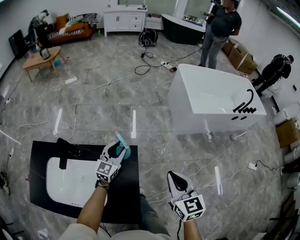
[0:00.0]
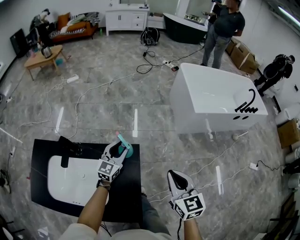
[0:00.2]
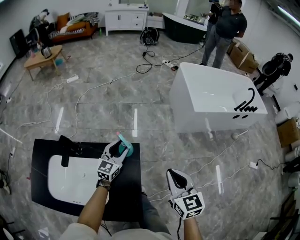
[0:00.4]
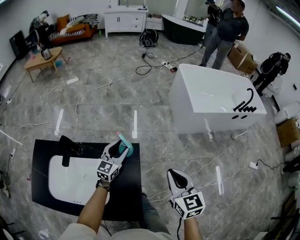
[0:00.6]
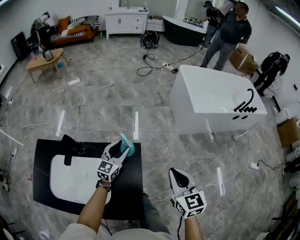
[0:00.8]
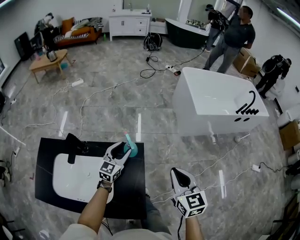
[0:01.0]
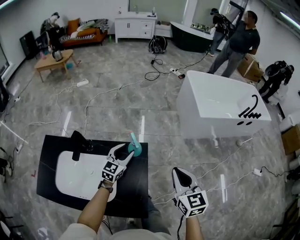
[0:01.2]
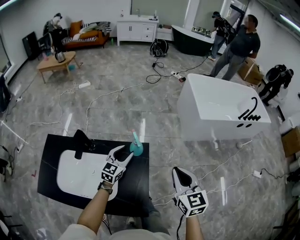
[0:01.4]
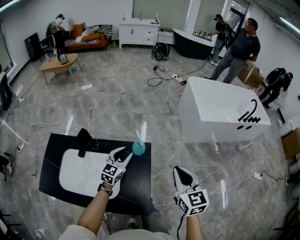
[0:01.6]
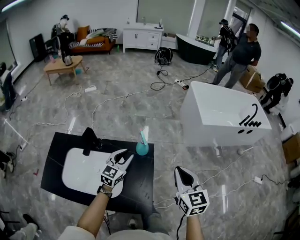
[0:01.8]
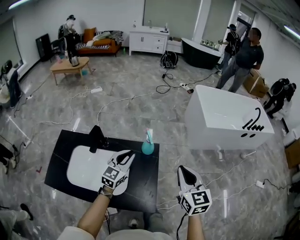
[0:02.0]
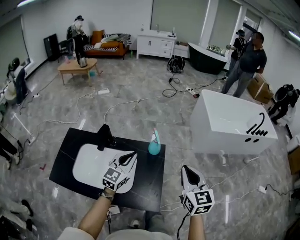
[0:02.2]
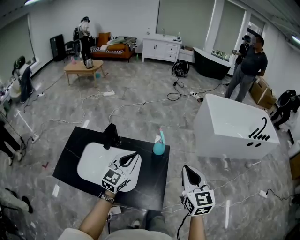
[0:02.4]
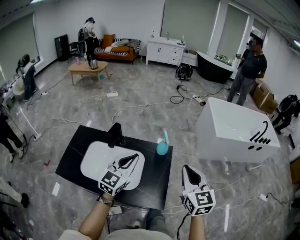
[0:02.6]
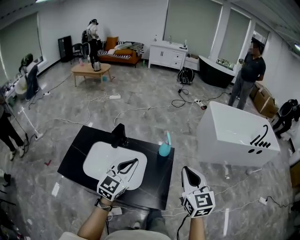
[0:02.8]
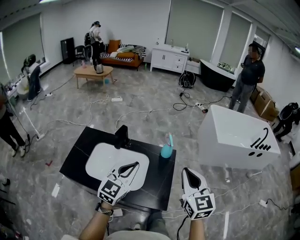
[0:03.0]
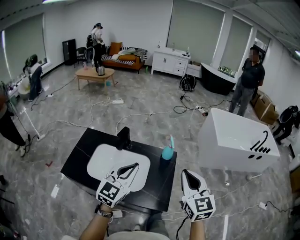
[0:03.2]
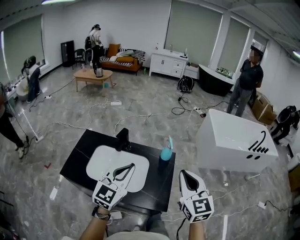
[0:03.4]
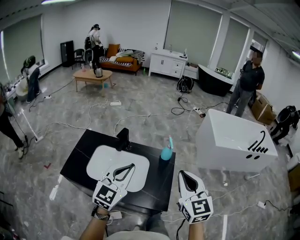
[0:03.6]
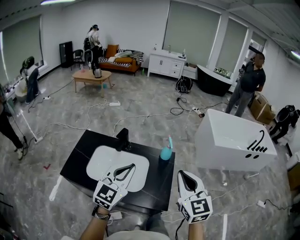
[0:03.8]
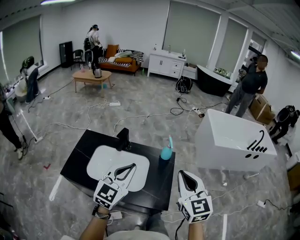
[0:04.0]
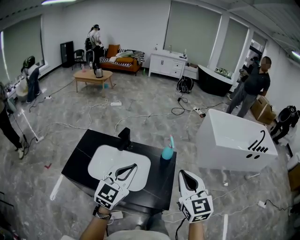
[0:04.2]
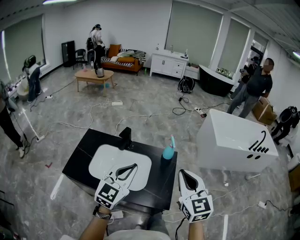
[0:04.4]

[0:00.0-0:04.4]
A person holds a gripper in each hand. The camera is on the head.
0.0 to 1.4 s: The right gripper heads backward, covering some 5 cm. Meanwhile the left gripper goes roughly 10 cm backward.
1.4 to 3.0 s: The right gripper heads backward, to the left and upward, covering about 20 cm. The left gripper heads backward and upward, covering roughly 35 cm, and closes up.
3.0 to 4.4 s: The right gripper moves approximately 5 cm. The left gripper changes place by roughly 5 cm.

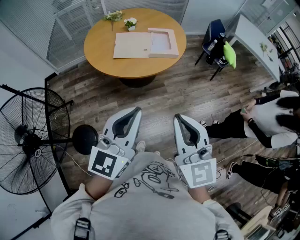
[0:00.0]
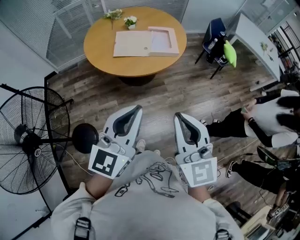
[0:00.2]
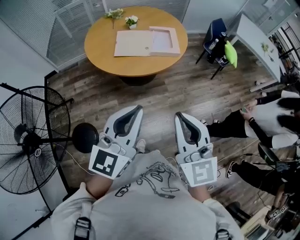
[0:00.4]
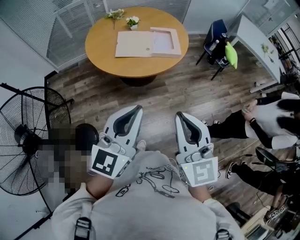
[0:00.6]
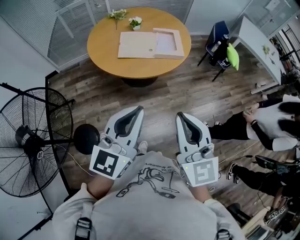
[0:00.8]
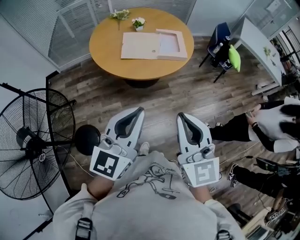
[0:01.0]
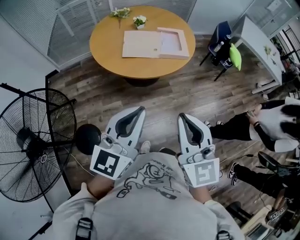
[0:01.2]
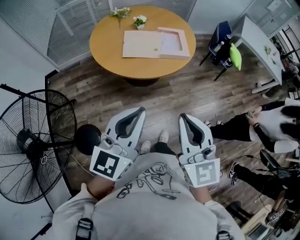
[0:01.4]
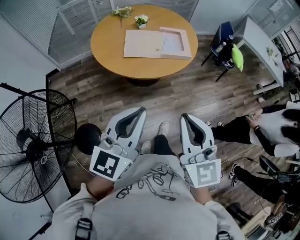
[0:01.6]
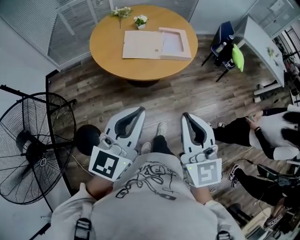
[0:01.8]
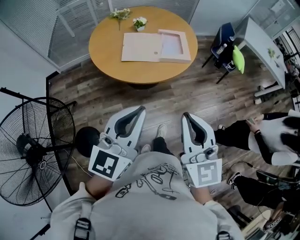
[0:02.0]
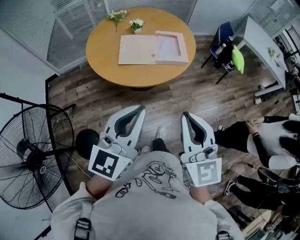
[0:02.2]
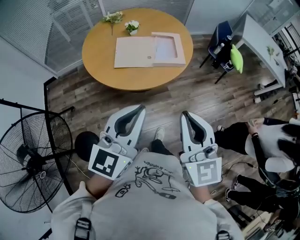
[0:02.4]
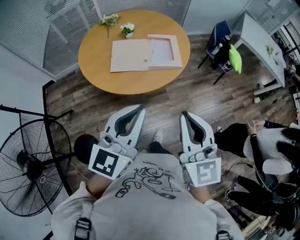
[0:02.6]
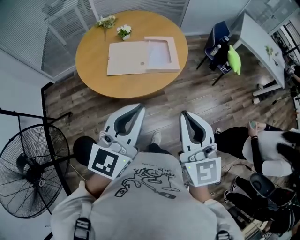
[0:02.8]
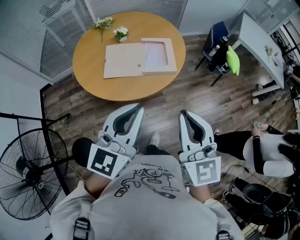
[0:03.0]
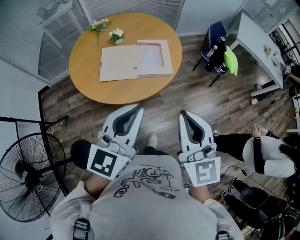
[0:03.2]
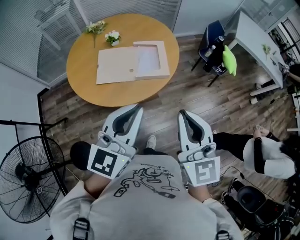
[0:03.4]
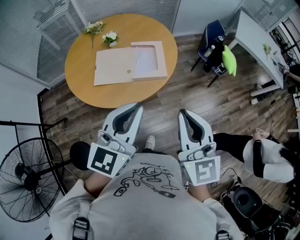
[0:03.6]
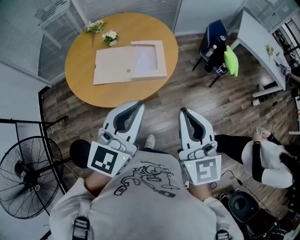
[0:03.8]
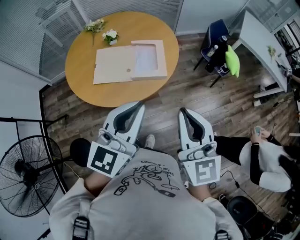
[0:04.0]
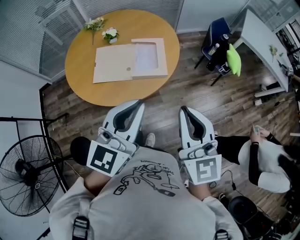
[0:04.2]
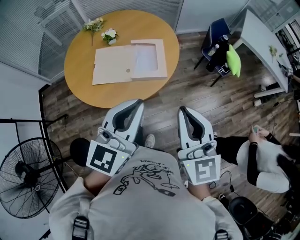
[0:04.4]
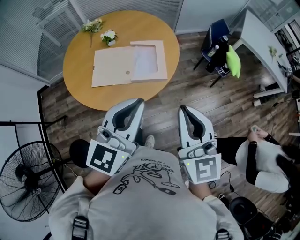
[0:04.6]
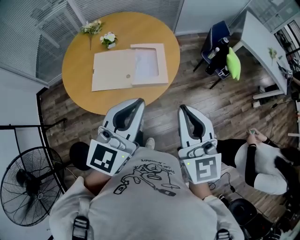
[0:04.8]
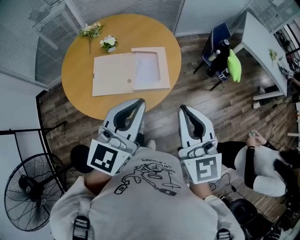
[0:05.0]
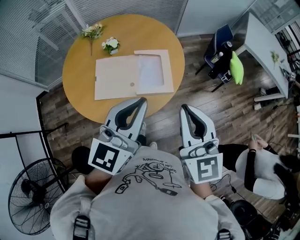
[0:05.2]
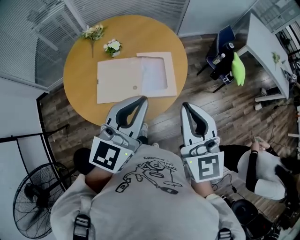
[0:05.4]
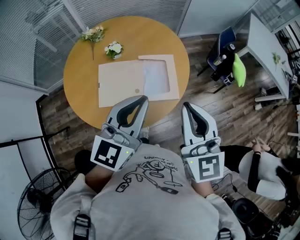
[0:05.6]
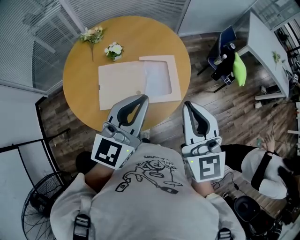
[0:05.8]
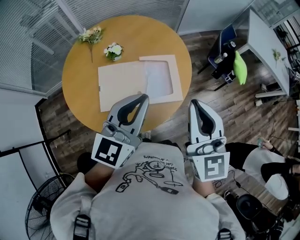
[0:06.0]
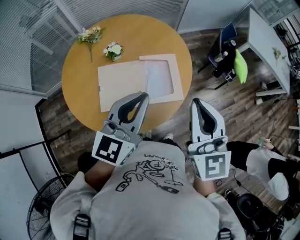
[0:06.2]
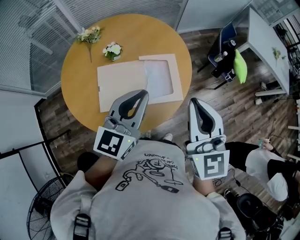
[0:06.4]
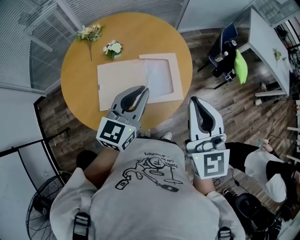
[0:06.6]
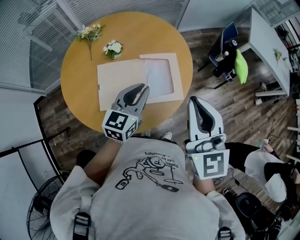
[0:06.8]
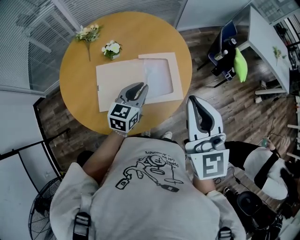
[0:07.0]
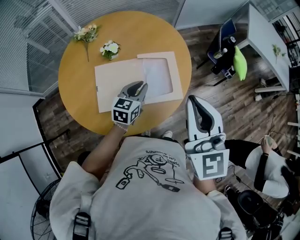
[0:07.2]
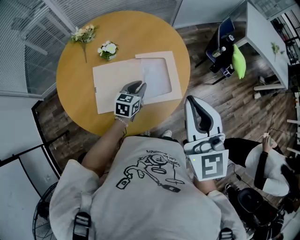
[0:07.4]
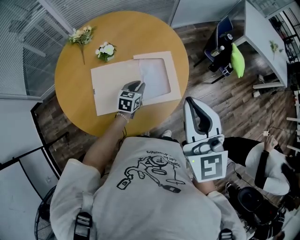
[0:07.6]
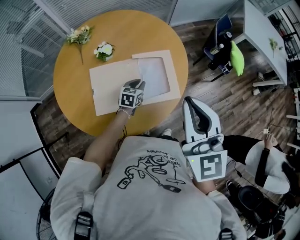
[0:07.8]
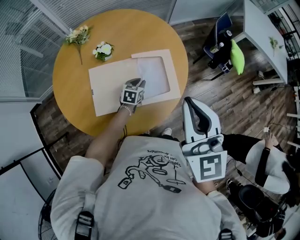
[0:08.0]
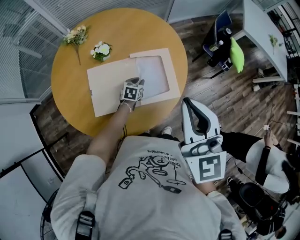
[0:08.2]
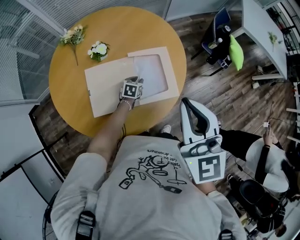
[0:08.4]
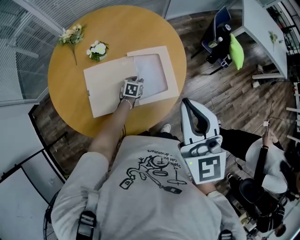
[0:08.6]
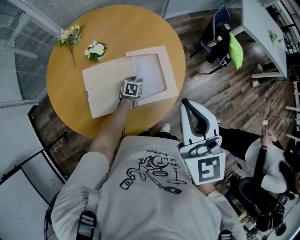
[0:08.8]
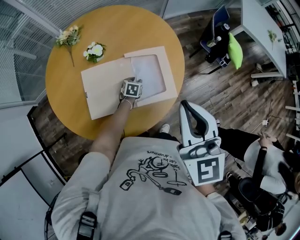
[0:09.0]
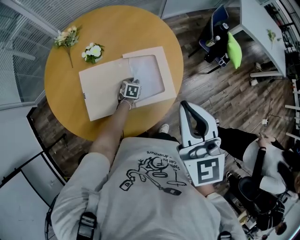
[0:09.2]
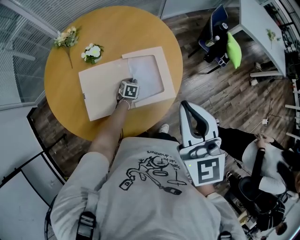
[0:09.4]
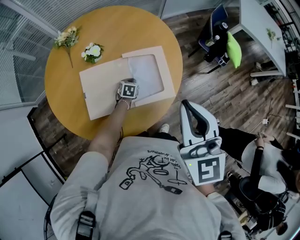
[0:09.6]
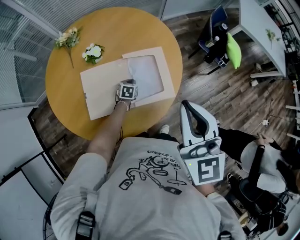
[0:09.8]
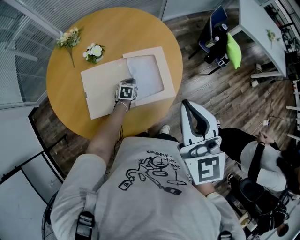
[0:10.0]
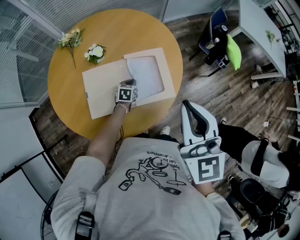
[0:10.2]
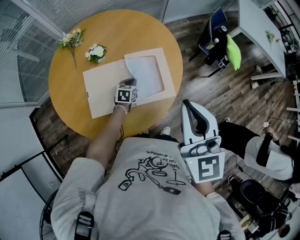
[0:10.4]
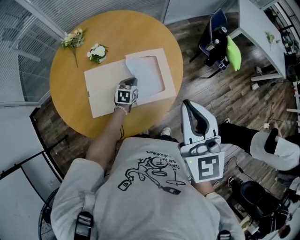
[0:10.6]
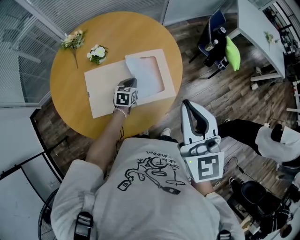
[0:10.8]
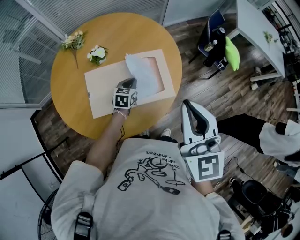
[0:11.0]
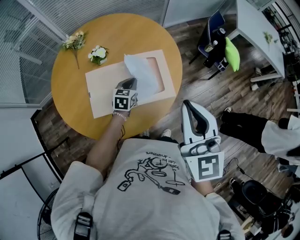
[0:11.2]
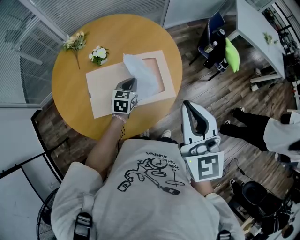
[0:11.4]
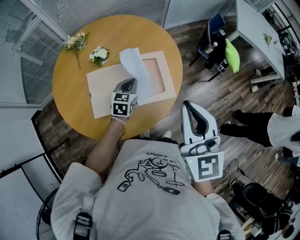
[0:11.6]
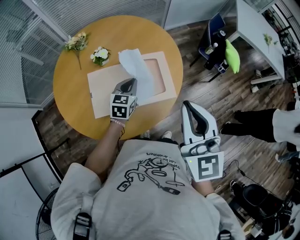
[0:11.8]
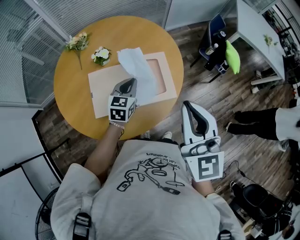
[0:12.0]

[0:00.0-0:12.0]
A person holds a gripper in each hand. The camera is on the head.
0.0 to 1.6 s: Both grippers travel together to the left, some 10 cm.
1.6 to 3.0 s: The two grippers go approximately 25 cm forward and to the right.
3.0 to 4.4 s: The two grippers go about 15 cm forward and to the right.
4.4 to 6.0 s: The grippers both shift forward and to the left by roughly 25 cm.
6.0 to 7.6 s: The left gripper moves downward, about 35 cm, and angles its fingers downward, by about 30 degrees.
7.6 to 9.0 s: The left gripper travels downward by roughly 15 cm, and rotates some 20 degrees, while the right gripper changes place by approximately 5 cm.
9.0 to 10.4 s: The left gripper goes approximately 10 cm upward, and closes its fingers.
10.4 to 12.0 s: The left gripper travels upward by about 20 cm, and turns by some 20 degrees.

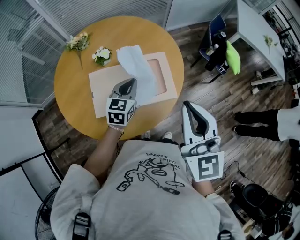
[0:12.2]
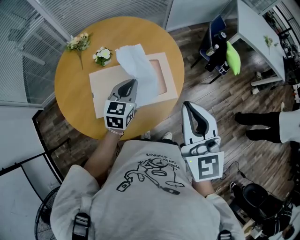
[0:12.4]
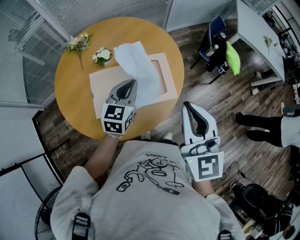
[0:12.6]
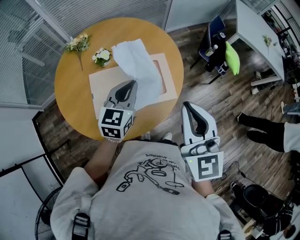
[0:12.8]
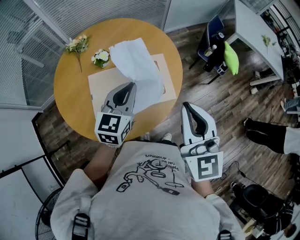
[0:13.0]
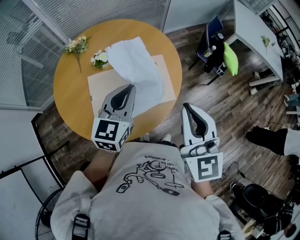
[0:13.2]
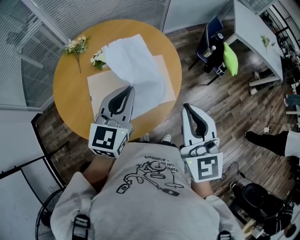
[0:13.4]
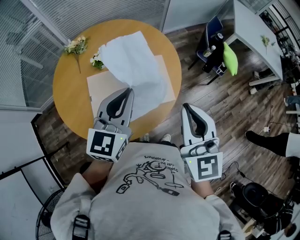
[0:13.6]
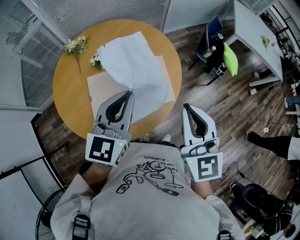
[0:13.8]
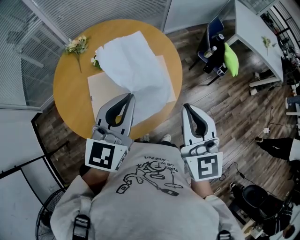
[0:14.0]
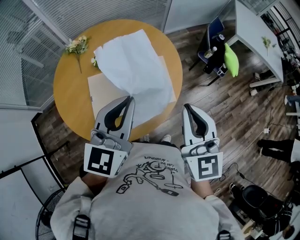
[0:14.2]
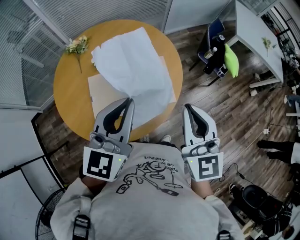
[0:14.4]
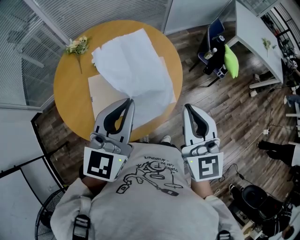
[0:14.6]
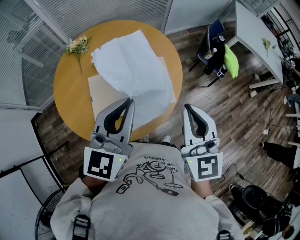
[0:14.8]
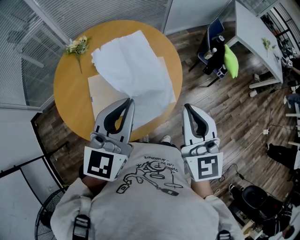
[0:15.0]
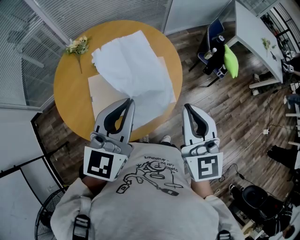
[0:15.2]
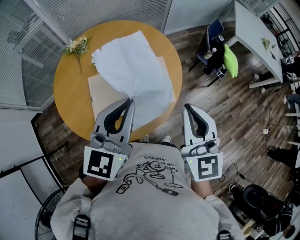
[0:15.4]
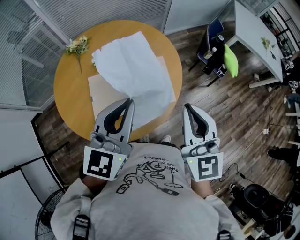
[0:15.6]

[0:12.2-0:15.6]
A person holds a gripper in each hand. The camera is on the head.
12.2 to 13.8 s: The left gripper heads upward and backward, covering roughly 20 cm.
13.8 to 15.6 s: There are only small adjustments of the grippers.

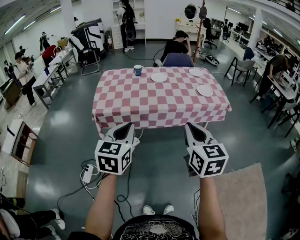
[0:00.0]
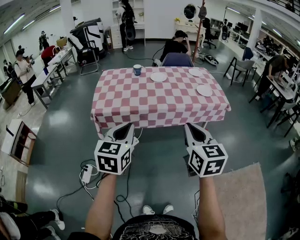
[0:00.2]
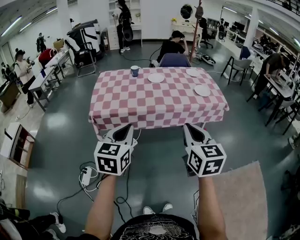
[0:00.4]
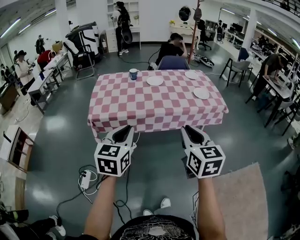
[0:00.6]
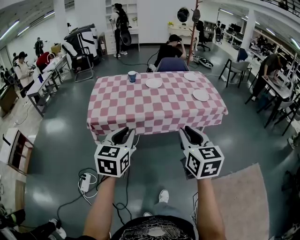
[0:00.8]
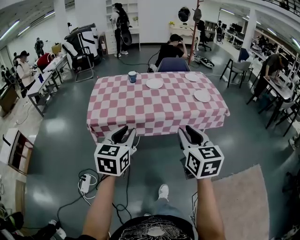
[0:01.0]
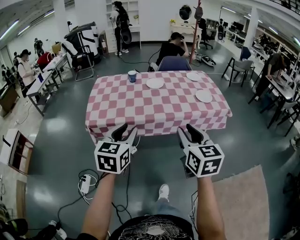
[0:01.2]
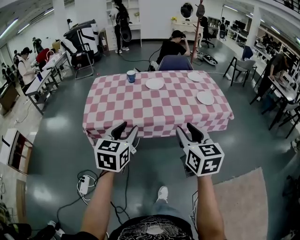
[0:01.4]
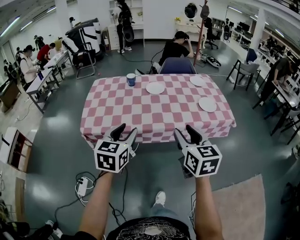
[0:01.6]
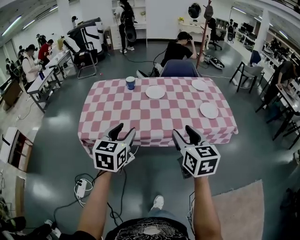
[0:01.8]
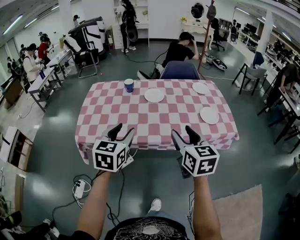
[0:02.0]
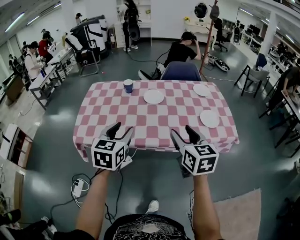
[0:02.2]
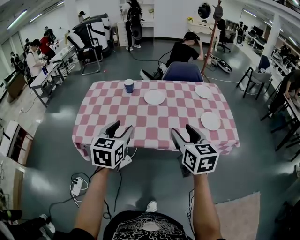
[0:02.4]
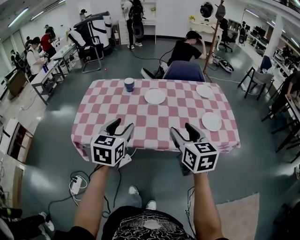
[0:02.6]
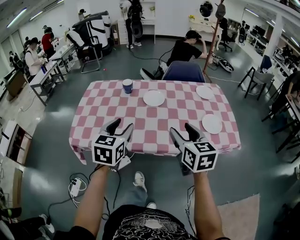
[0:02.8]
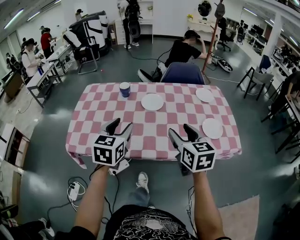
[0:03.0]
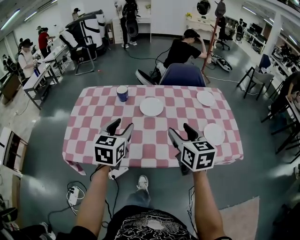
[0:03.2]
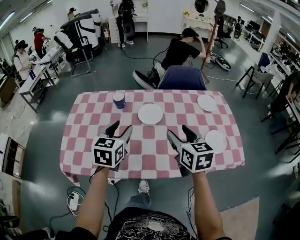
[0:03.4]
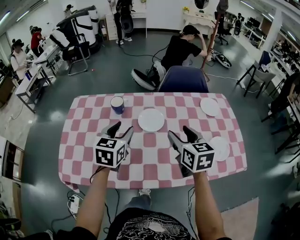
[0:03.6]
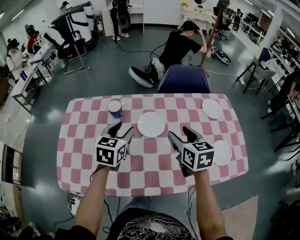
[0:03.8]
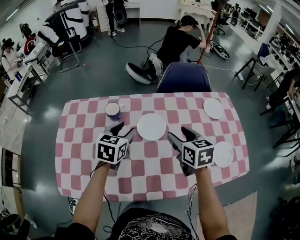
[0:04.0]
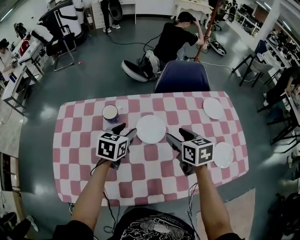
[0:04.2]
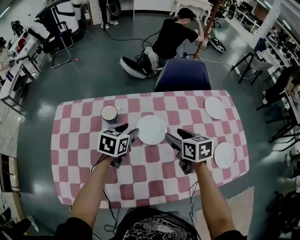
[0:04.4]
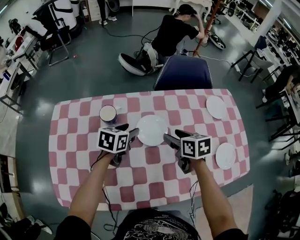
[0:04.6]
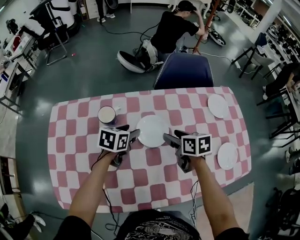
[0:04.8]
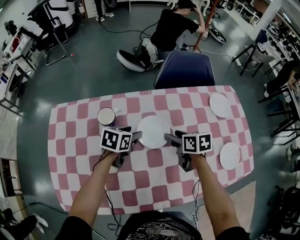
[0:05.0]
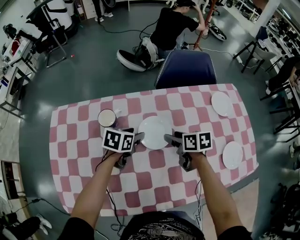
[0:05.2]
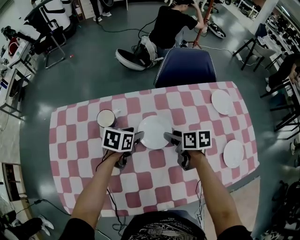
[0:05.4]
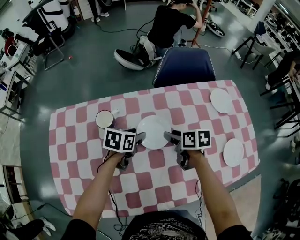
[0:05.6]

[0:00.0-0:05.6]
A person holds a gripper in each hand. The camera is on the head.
0.0 to 1.4 s: Both grippers move forward, approximately 15 cm. The right gripper opens up. Meanwhile the left gripper opens up.
1.4 to 2.8 s: Both grippers travel together forward, approximately 25 cm.
2.8 to 4.2 s: The right gripper shifts roughly 35 cm forward, and turns by some 20 degrees. The left gripper goes about 40 cm forward and downward, and changes its angle by about 20 degrees.
4.2 to 5.6 s: The two grippers go approximately 10 cm downward. The right gripper turns by some 30 degrees; the left gripper swivels approximately 20 degrees.
